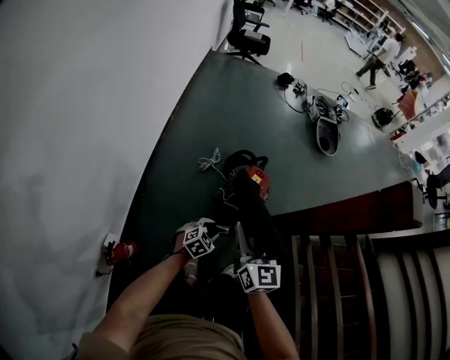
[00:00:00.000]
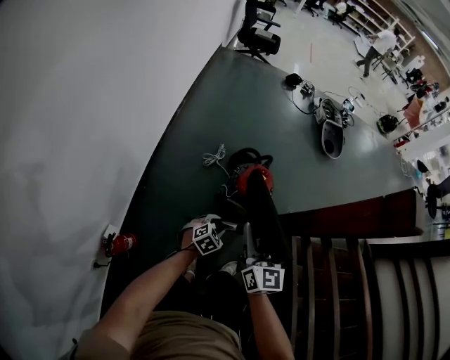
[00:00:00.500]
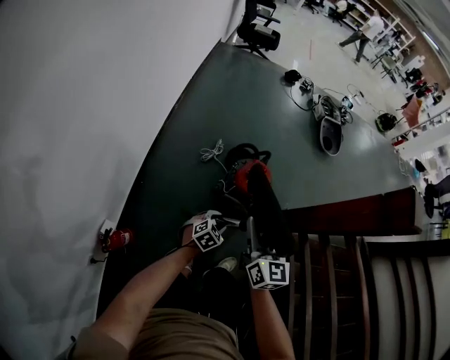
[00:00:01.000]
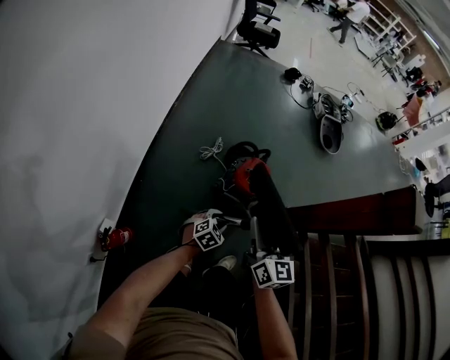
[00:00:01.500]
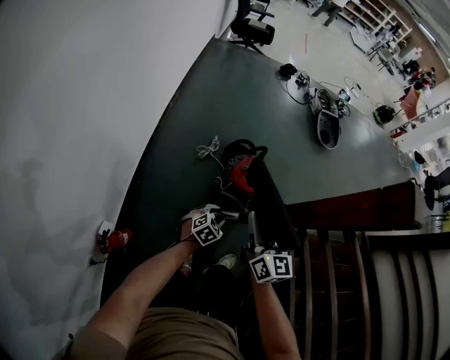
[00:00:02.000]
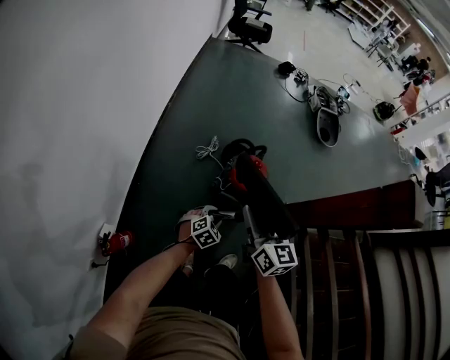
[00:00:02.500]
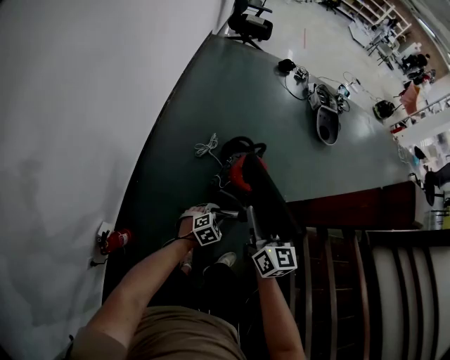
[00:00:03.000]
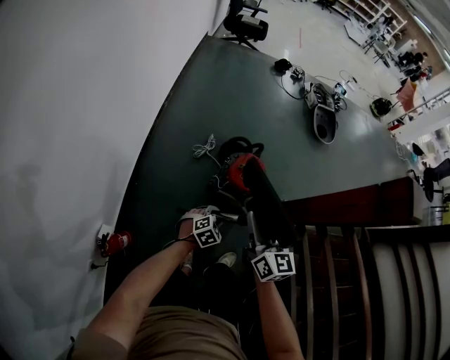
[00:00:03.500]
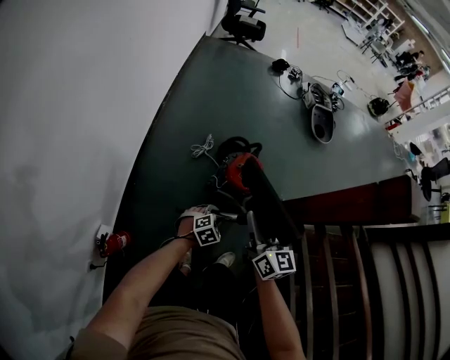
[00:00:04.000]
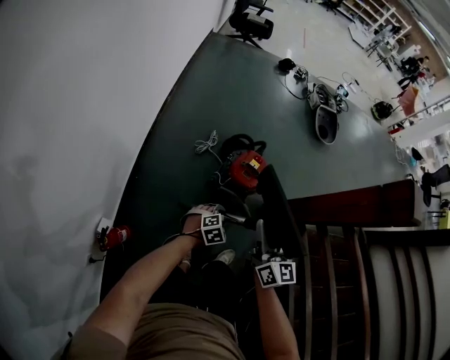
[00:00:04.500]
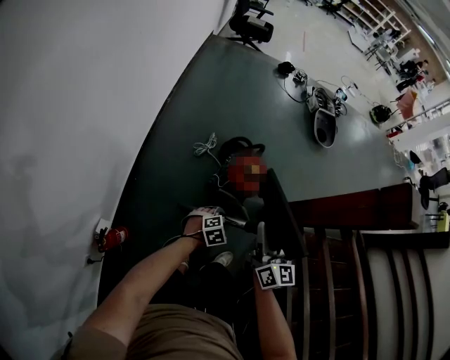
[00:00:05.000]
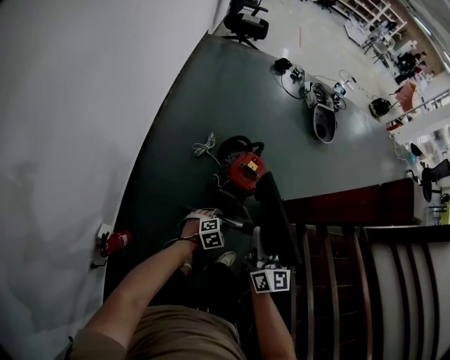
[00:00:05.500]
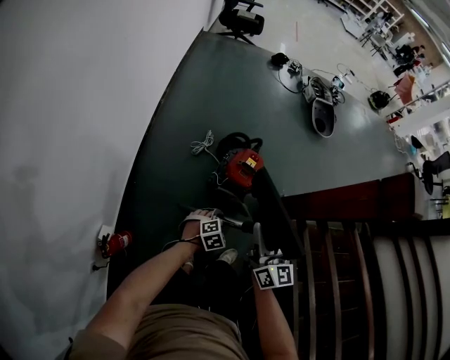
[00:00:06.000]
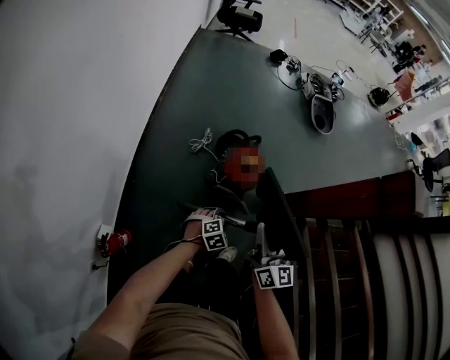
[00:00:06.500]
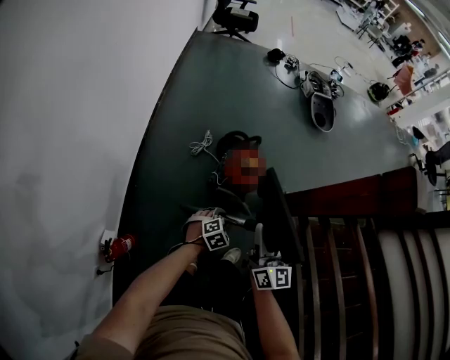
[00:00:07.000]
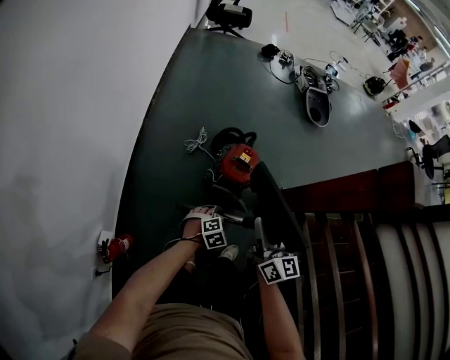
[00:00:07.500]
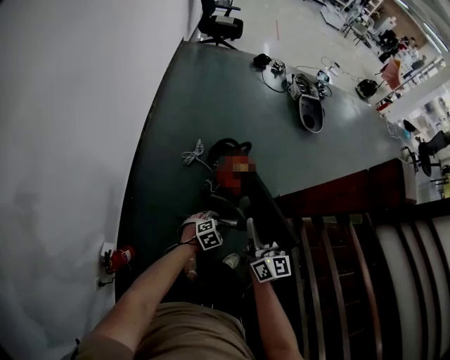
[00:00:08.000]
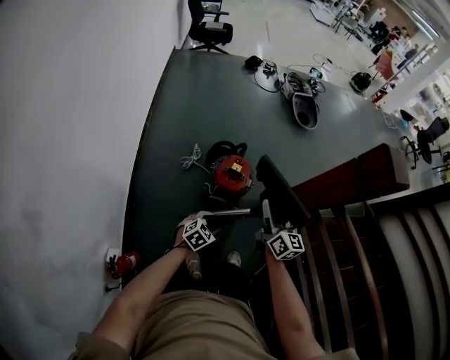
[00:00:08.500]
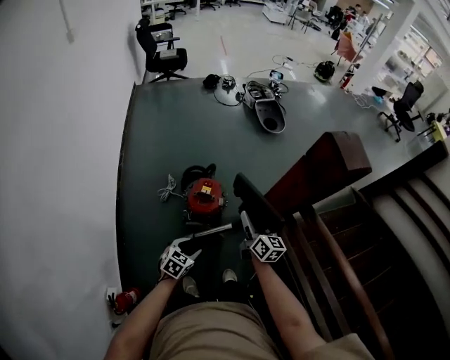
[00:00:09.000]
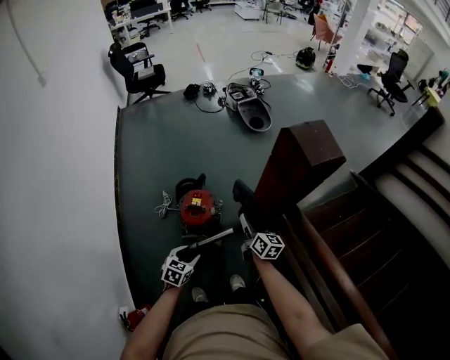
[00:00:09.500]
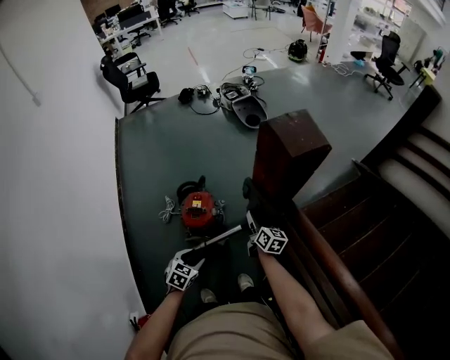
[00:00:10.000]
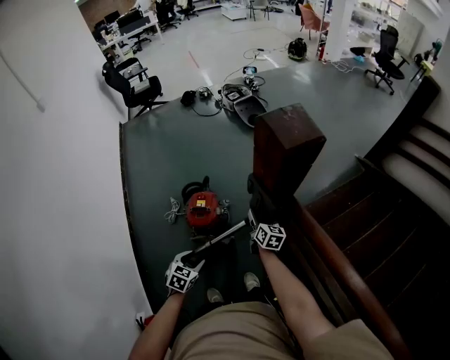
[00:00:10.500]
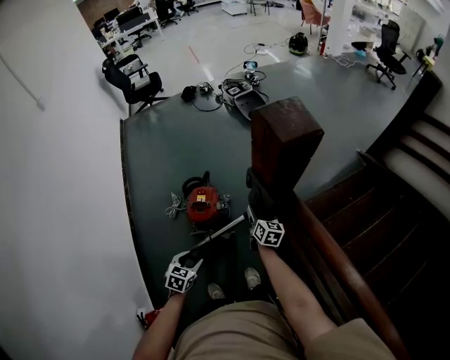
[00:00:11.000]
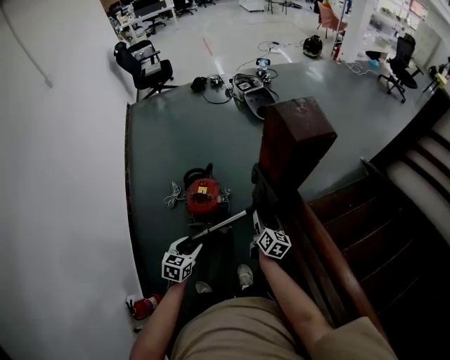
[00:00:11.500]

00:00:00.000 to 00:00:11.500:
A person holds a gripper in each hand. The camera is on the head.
00:00:00.000 to 00:00:04.000: The grippers make only small movements.
00:00:04.000 to 00:00:06.000: The grippers stay close to where they were, moving slightly.
00:00:06.000 to 00:00:07.500: There are only small adjustments of the grippers.
00:00:07.500 to 00:00:09.500: The left gripper travels upward, to the right and forward by roughly 15 cm, and swivels approximately 30 degrees, while the right gripper heads to the right, forward and downward, covering approximately 30 cm, and swivels some 20 degrees.
00:00:09.500 to 00:00:11.500: The left gripper changes place by about 5 cm, while the right gripper moves to the right, approximately 10 cm.

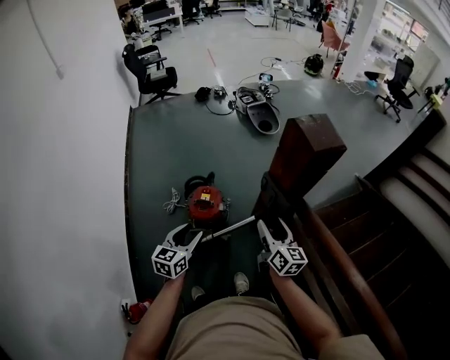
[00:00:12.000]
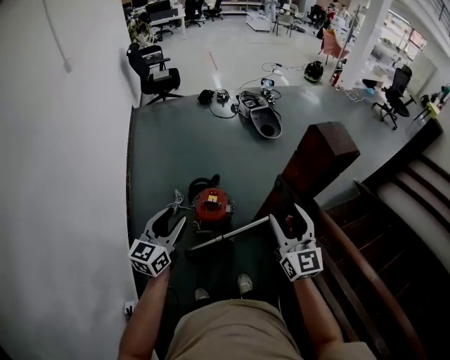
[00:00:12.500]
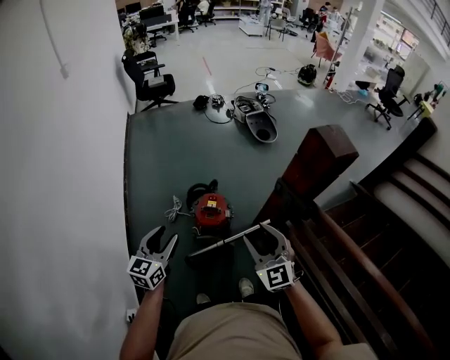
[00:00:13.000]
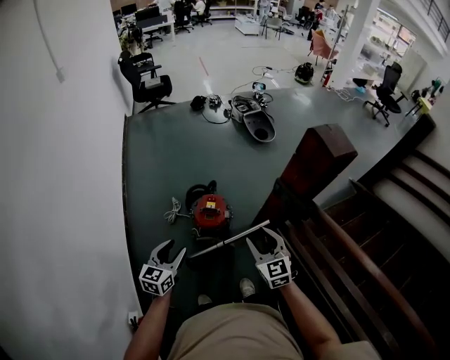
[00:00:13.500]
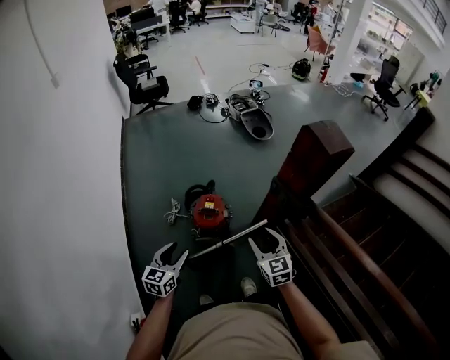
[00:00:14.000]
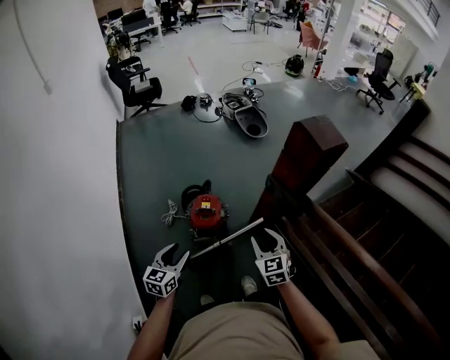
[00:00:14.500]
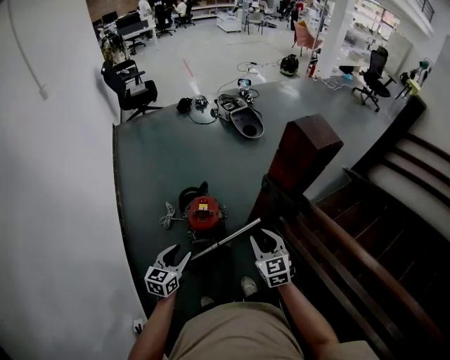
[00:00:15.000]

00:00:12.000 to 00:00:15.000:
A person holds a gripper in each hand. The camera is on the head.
00:00:12.000 to 00:00:13.500: Both grippers travel together to the left, about 15 cm. The right gripper rolls counterclockwise, seen from behind, by roughly 40 degrees.
00:00:13.500 to 00:00:15.000: Both grippers travel together to the right, approximately 5 cm.

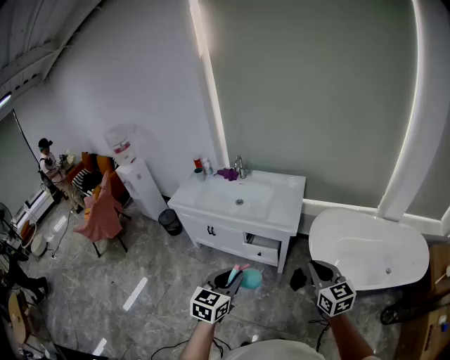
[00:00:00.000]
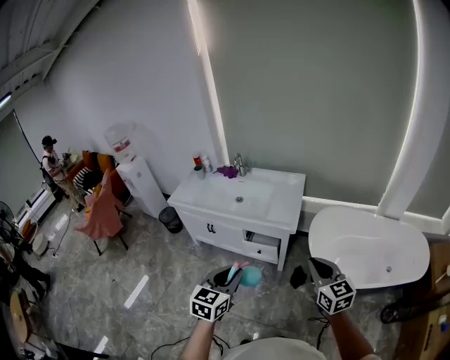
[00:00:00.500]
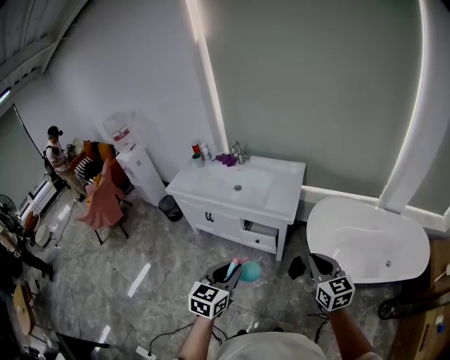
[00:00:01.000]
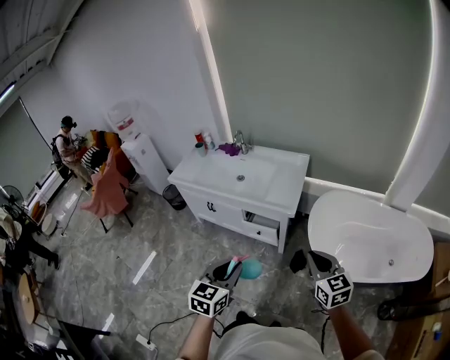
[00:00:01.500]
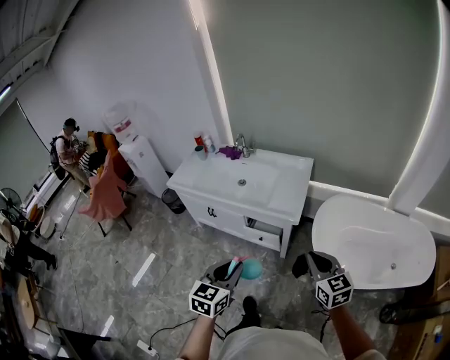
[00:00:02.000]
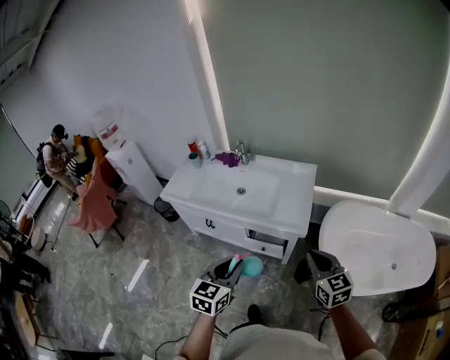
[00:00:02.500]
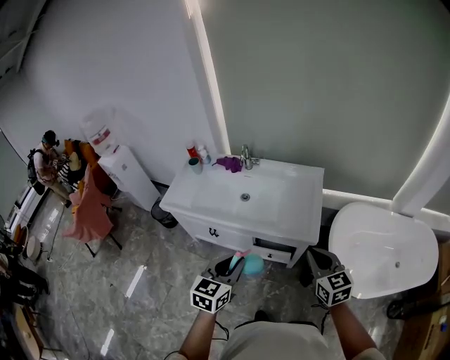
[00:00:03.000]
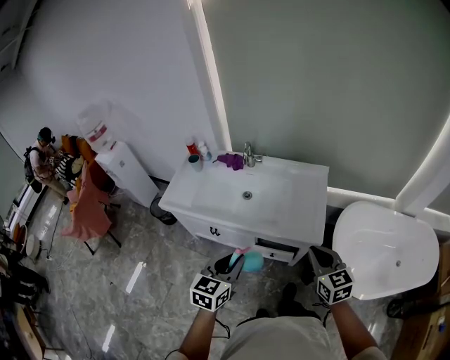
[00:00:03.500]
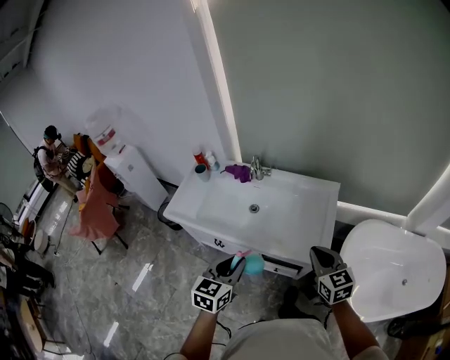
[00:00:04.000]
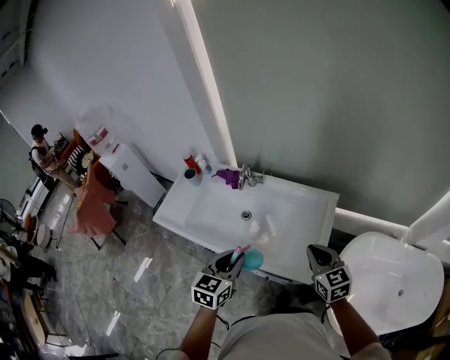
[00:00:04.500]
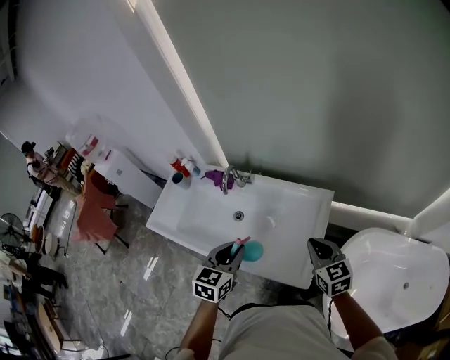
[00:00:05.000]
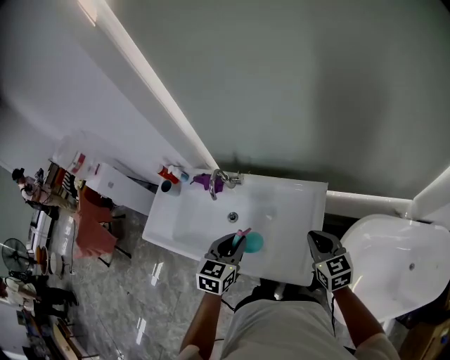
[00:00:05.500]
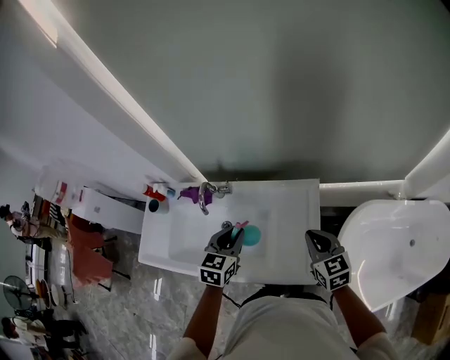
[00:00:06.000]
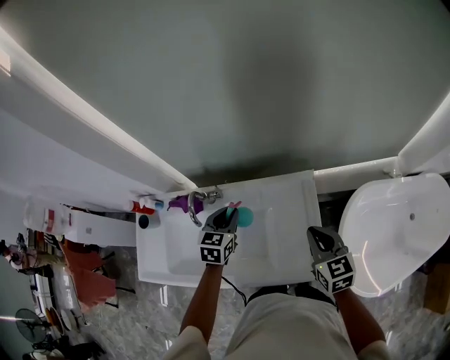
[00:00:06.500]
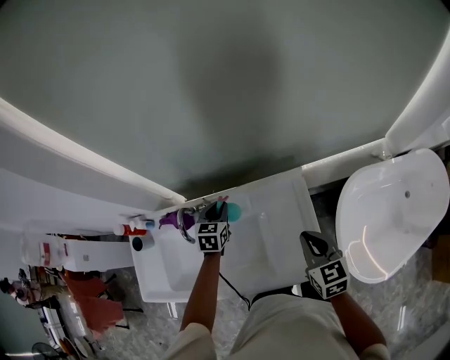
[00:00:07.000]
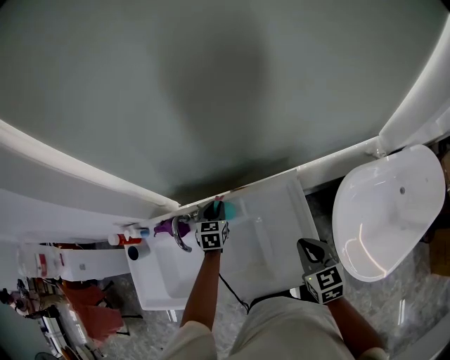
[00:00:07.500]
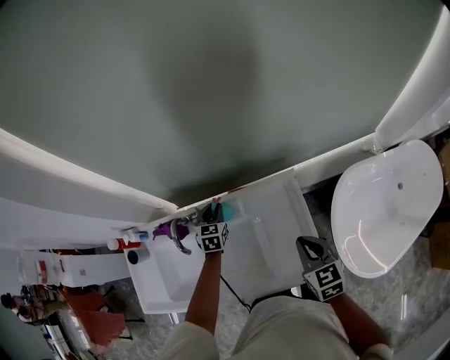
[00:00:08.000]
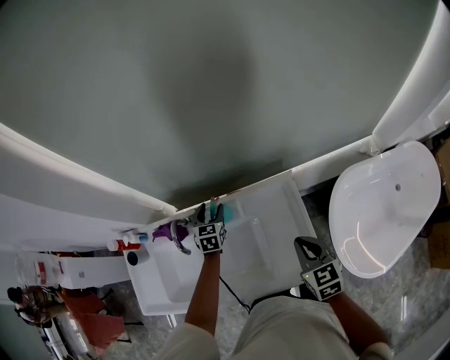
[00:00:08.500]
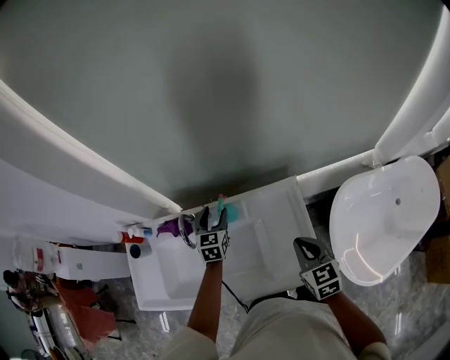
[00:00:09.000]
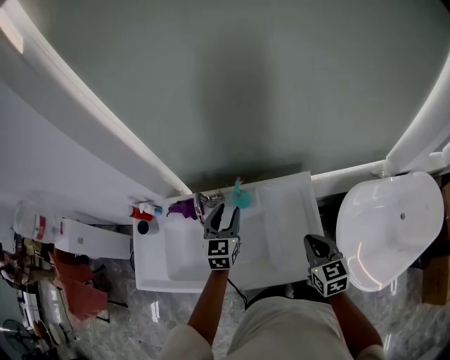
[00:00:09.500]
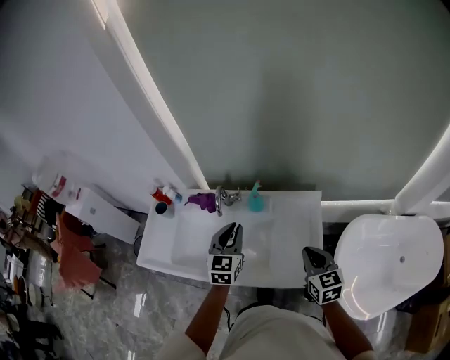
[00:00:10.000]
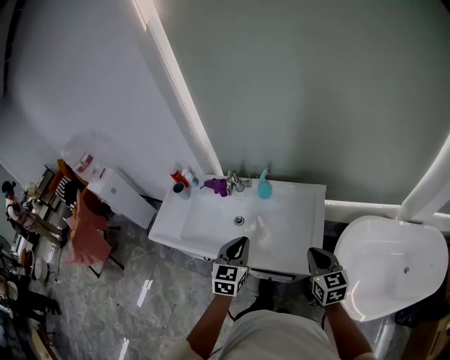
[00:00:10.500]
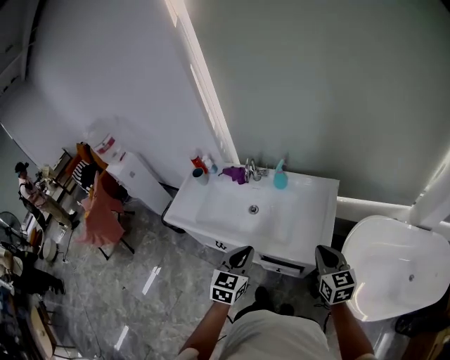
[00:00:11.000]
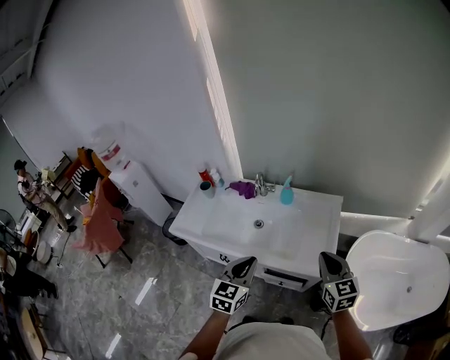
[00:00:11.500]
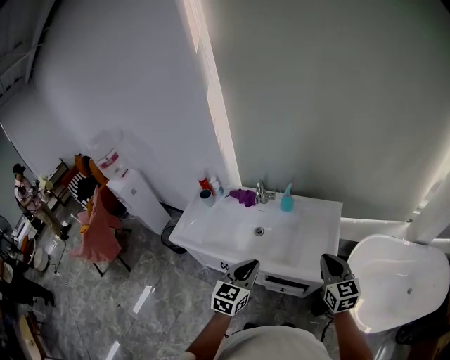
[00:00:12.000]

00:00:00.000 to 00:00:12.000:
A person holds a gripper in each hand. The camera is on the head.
00:00:00.000 to 00:00:02.000: The right gripper moves forward and downward, about 10 cm. The left gripper shifts by some 5 cm.
00:00:02.000 to 00:00:04.000: The two grippers go some 35 cm forward and to the left.
00:00:04.000 to 00:00:06.000: Both grippers move forward and to the right, roughly 30 cm.
00:00:06.000 to 00:00:08.000: The left gripper goes about 30 cm forward and downward.
00:00:08.000 to 00:00:10.000: The left gripper is displaced backward and upward by about 30 cm, swivels roughly 20 degrees, and opens, then closes again, while the right gripper goes approximately 10 cm backward and upward.
00:00:10.000 to 00:00:12.000: The right gripper moves backward and upward, roughly 15 cm; the left gripper goes some 25 cm backward.
